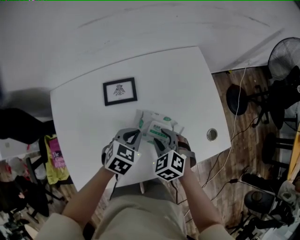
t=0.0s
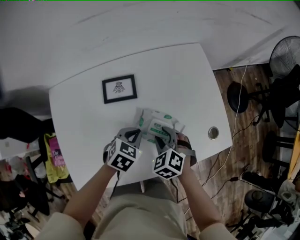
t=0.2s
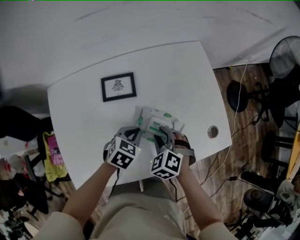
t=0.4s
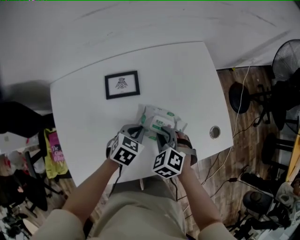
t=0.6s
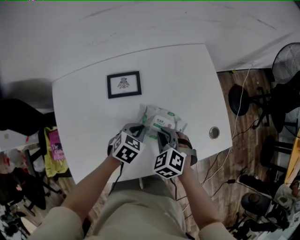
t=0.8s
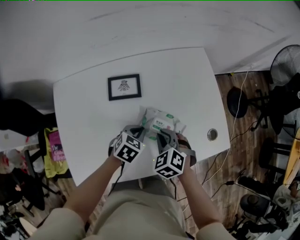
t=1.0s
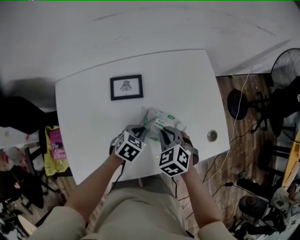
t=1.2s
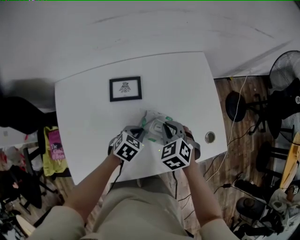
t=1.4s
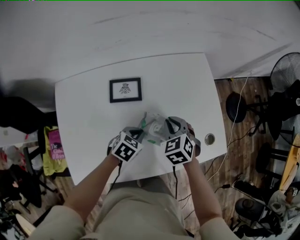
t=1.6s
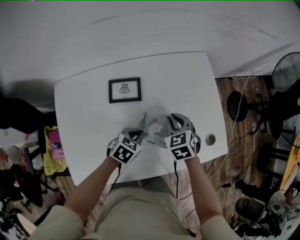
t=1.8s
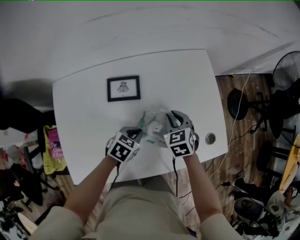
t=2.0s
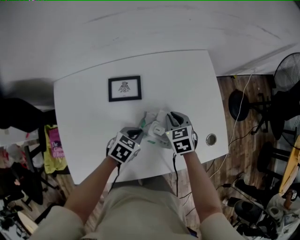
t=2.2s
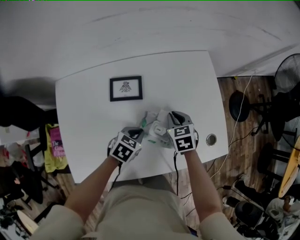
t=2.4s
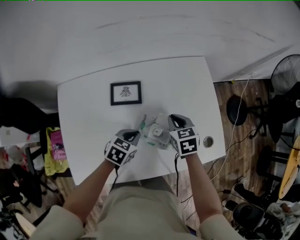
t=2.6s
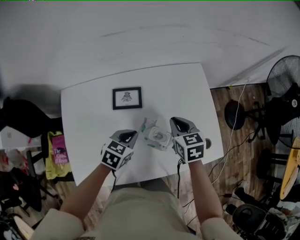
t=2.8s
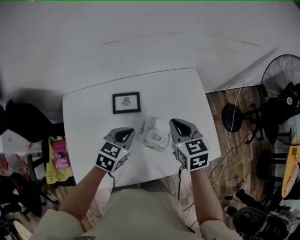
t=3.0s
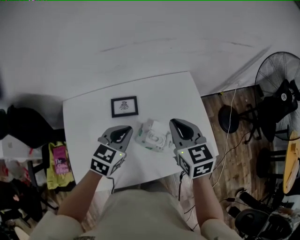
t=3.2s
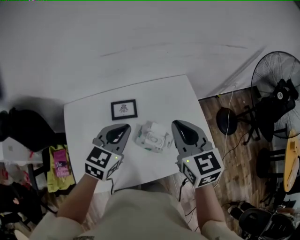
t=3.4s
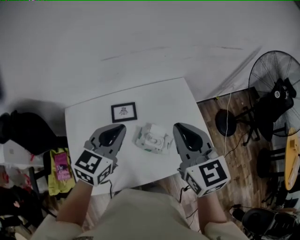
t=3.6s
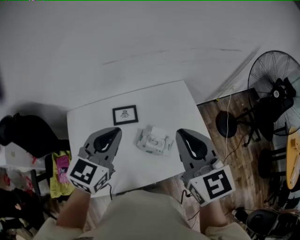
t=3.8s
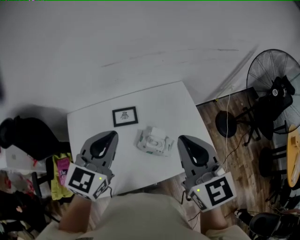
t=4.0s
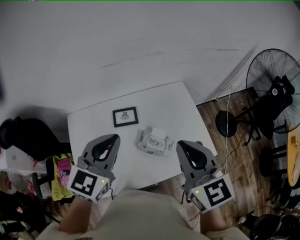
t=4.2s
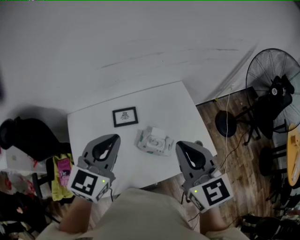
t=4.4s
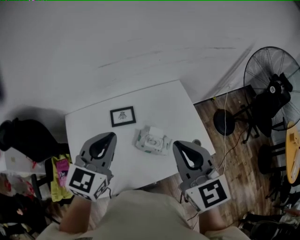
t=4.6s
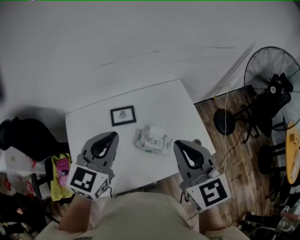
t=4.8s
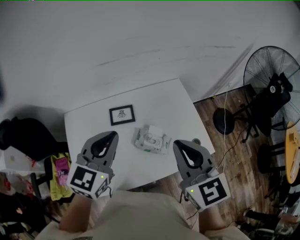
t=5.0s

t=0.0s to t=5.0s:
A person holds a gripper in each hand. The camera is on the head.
t=0.0s to t=1.6s: The right gripper is displaced forward by approximately 5 cm, and closes up. Meanwhile the left gripper travels downward by roughly 5 cm.
t=1.6s to t=3.4s: The grippers both shift upward by roughly 30 cm. The left gripper angles its fingers upward, by roughly 30 degrees. Meanwhile the right gripper points its fingers roughly 30 degrees further upward.
t=3.4s to t=5.0s: The left gripper goes roughly 10 cm upward; the right gripper shifts some 10 cm backward and upward.

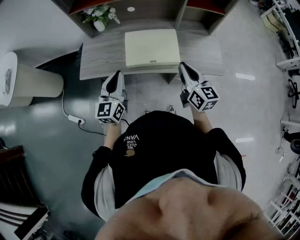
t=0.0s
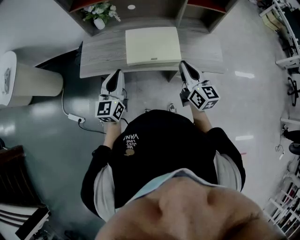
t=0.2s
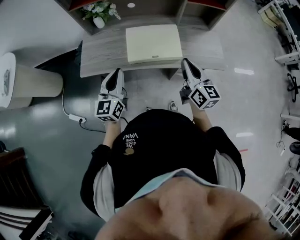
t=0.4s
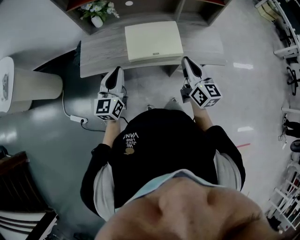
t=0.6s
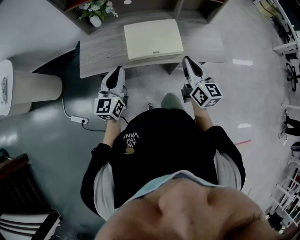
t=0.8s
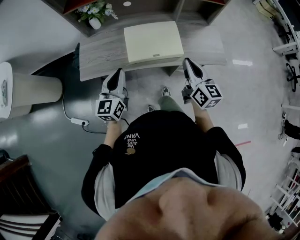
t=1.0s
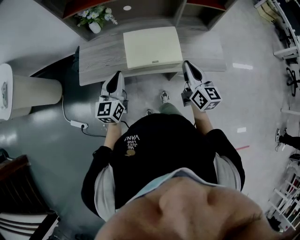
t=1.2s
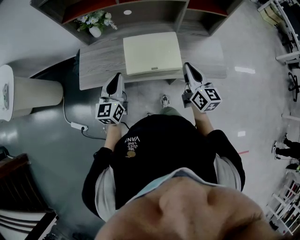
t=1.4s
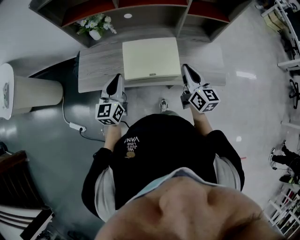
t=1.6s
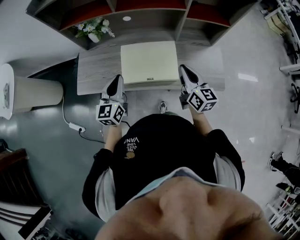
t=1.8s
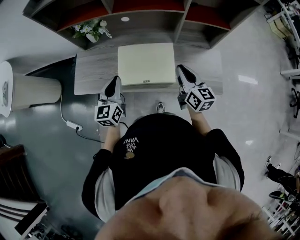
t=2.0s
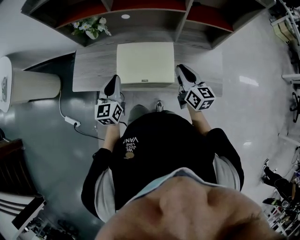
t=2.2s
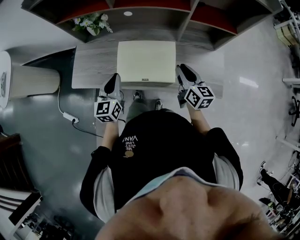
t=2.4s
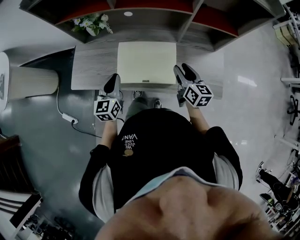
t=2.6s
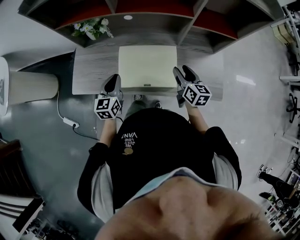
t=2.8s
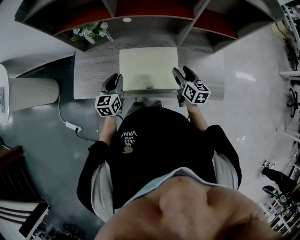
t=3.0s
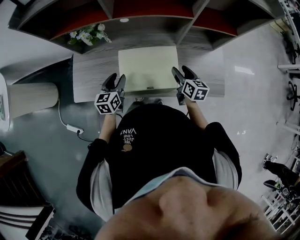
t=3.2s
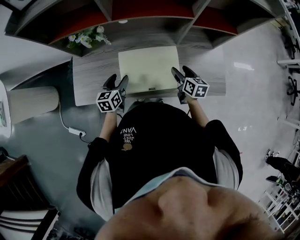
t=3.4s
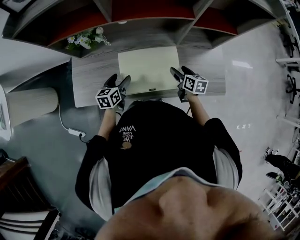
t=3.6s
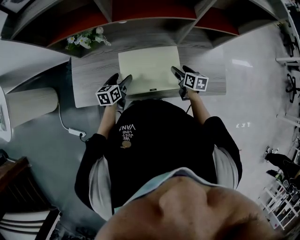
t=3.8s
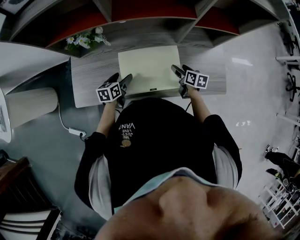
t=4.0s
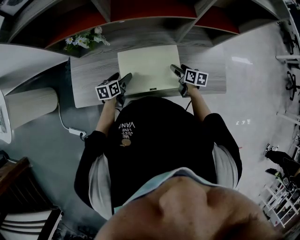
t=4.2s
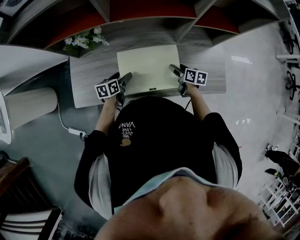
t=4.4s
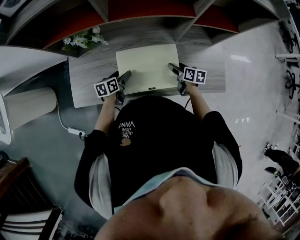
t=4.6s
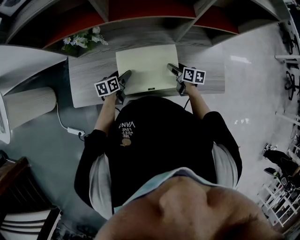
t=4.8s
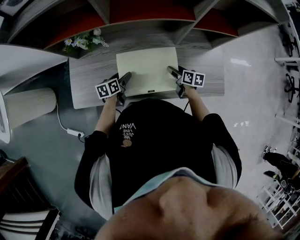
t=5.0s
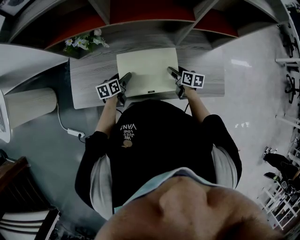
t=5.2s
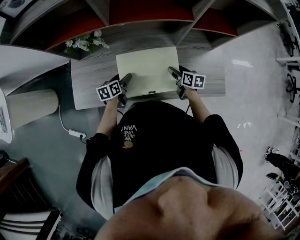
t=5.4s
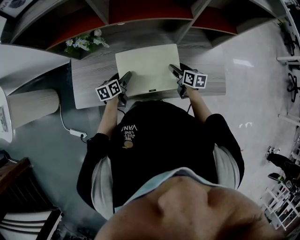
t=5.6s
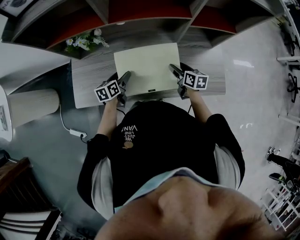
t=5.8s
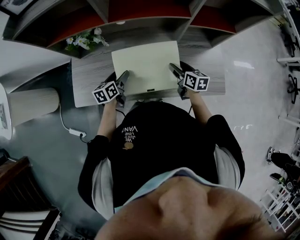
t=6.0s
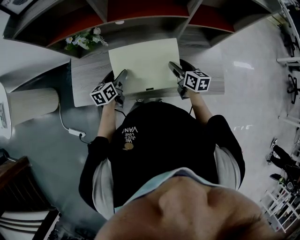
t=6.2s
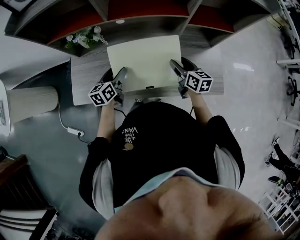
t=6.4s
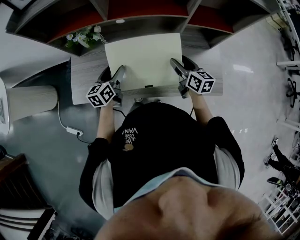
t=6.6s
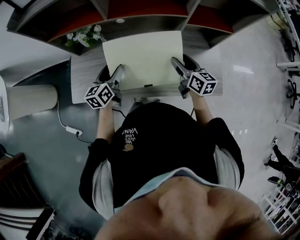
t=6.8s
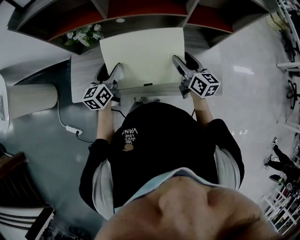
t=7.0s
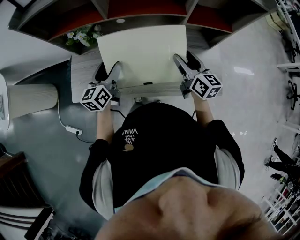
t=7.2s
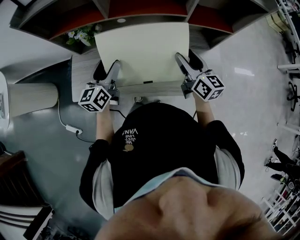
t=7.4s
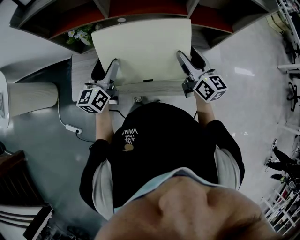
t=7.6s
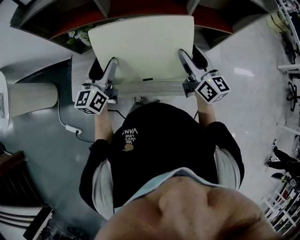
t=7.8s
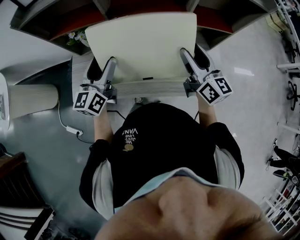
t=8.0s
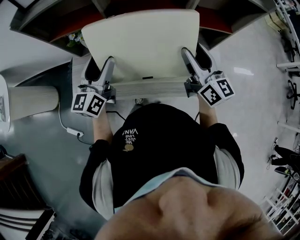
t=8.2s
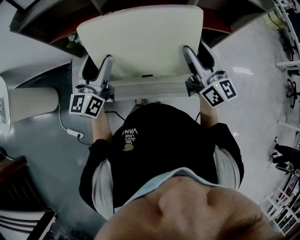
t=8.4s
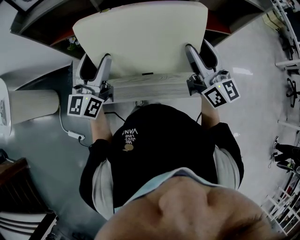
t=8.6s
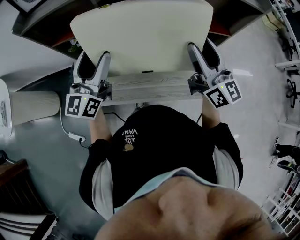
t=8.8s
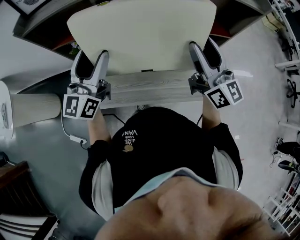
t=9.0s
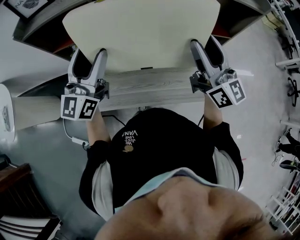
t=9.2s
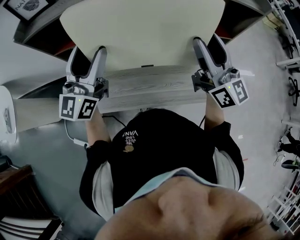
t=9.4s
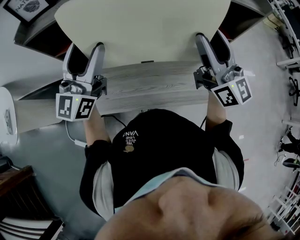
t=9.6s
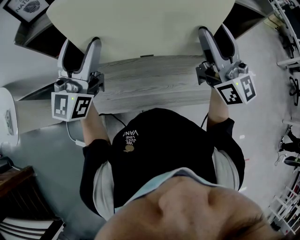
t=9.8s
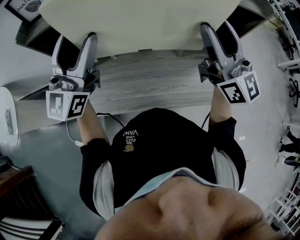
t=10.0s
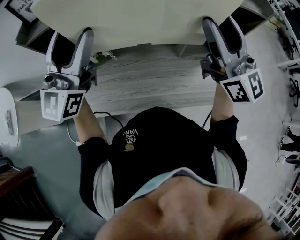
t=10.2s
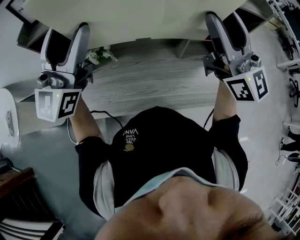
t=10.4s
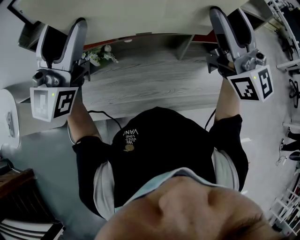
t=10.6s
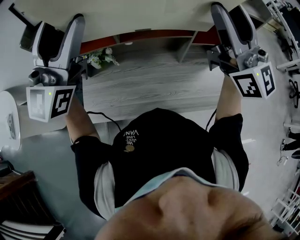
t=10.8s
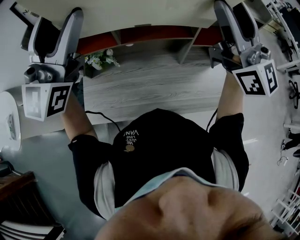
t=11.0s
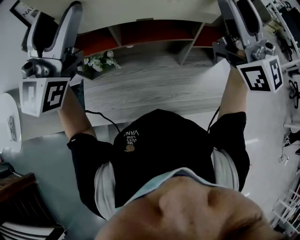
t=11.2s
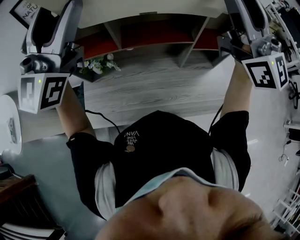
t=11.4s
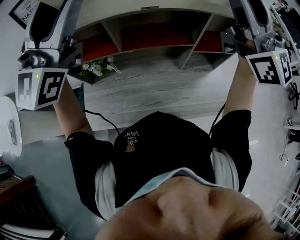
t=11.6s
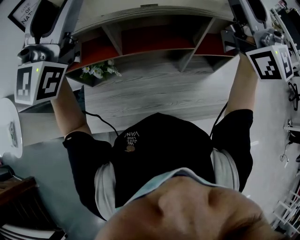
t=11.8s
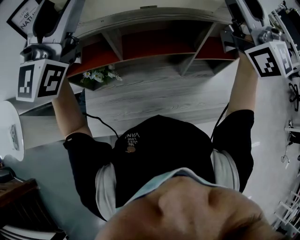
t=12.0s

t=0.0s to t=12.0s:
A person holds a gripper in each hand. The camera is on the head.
t=0.0s to t=1.6s: The grippers both shift forward by roughly 10 cm.
t=1.6s to t=3.0s: Both grippers travel together downward and forward, approximately 15 cm. The right gripper opens its fingers.
t=3.0s to t=4.4s: Both grippers move downward, some 10 cm. The left gripper rotates some 30 degrees, and opens, while the right gripper rotates approximately 20 degrees.
t=4.4s to t=6.0s: The right gripper moves upward, some 10 cm.
t=6.0s to t=7.6s: The grippers both shift upward by some 20 cm. The left gripper turns by about 30 degrees, while the right gripper swivels some 30 degrees.
t=7.6s to t=9.0s: The two grippers go approximately 15 cm upward. The right gripper turns by roughly 20 degrees. The left gripper swivels roughly 20 degrees.
t=9.0s to t=10.4s: Both grippers move upward, approximately 10 cm. The left gripper swivels about 20 degrees.
t=10.4s to t=12.0s: The grippers both shift upward and forward by about 15 cm.

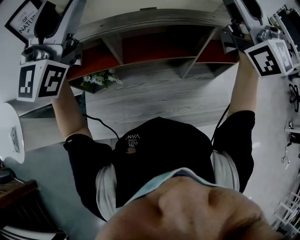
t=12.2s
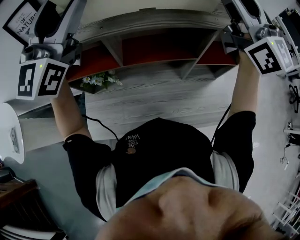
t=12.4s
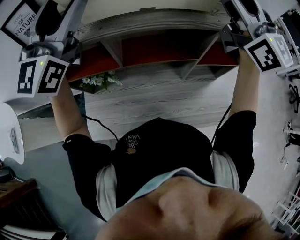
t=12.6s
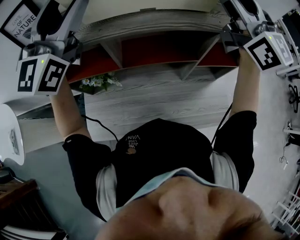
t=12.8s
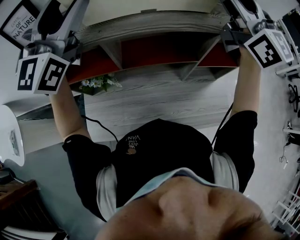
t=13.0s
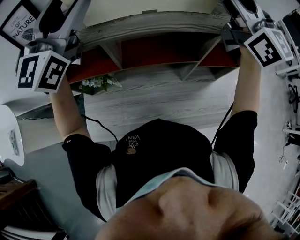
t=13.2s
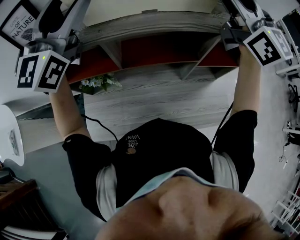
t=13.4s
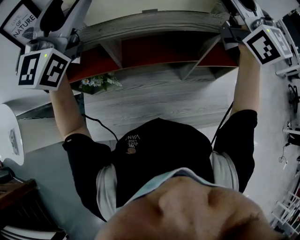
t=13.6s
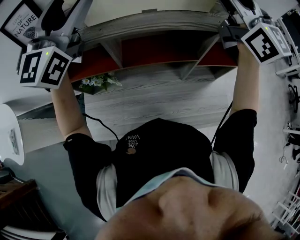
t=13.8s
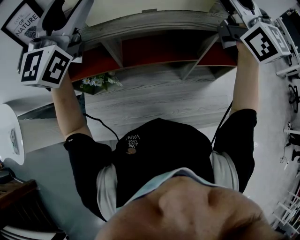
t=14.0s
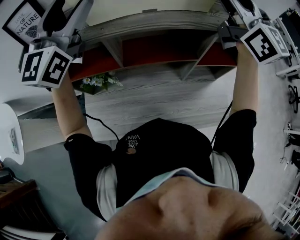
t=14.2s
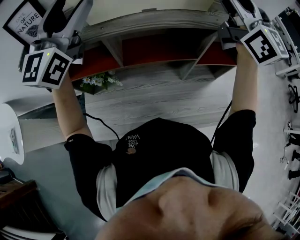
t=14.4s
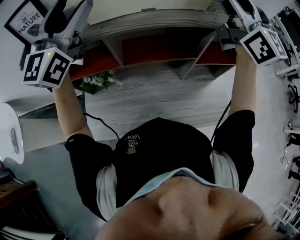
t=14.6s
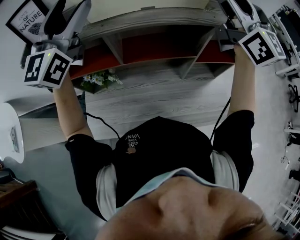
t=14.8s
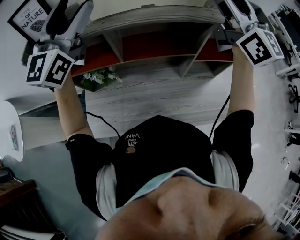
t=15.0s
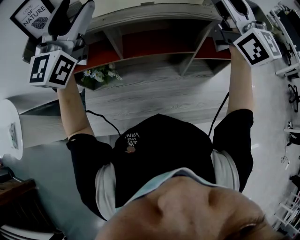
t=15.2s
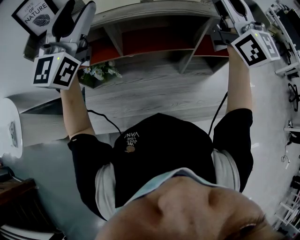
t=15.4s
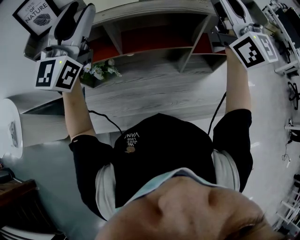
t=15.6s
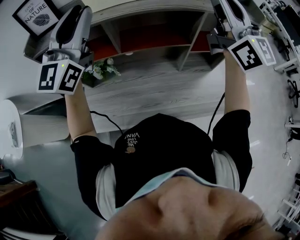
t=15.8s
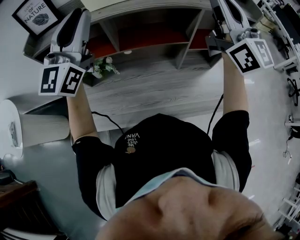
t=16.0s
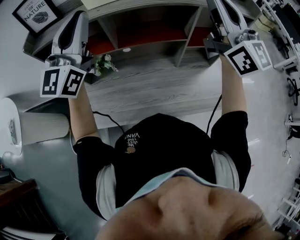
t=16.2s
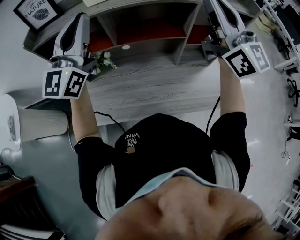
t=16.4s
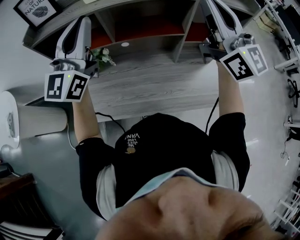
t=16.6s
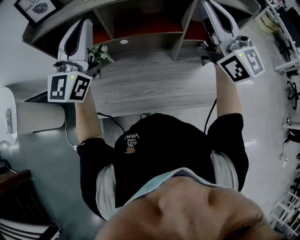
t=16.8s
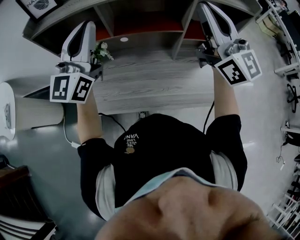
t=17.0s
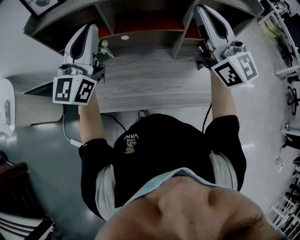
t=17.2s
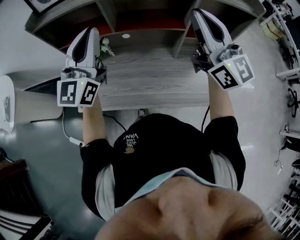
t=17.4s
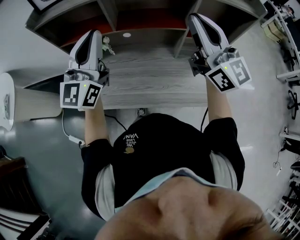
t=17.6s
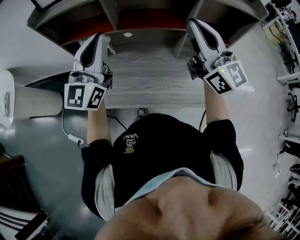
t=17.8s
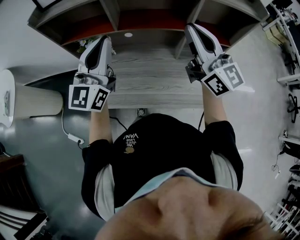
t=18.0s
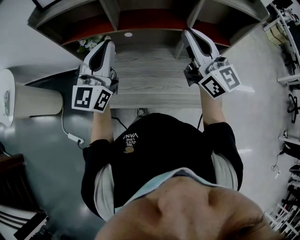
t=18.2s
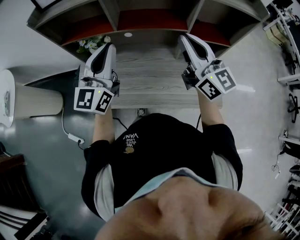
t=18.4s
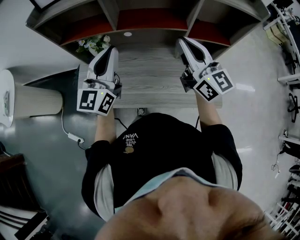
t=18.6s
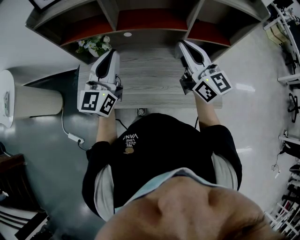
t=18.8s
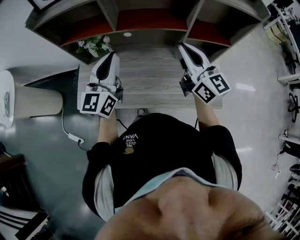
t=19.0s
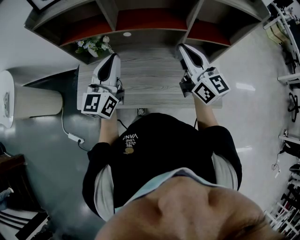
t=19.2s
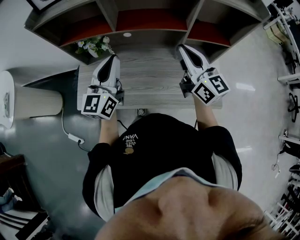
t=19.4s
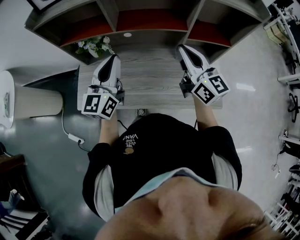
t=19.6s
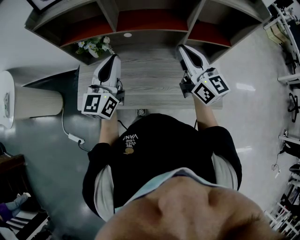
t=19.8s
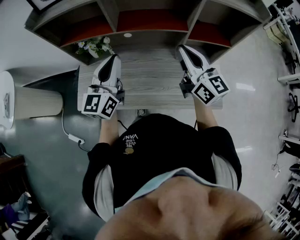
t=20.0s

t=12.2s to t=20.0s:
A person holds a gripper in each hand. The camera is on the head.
t=12.2s to t=13.8s: Both grippers move forward, about 5 cm.
t=13.8s to t=15.4s: The two grippers go some 5 cm backward.
t=15.4s to t=16.8s: Both grippers travel together backward and downward, approximately 10 cm. The left gripper closes, while the right gripper closes its fingers.
t=16.8s to t=18.4s: The two grippers go approximately 15 cm downward.
t=18.4s to t=20.0s: Both grippers travel together downward, some 5 cm.
